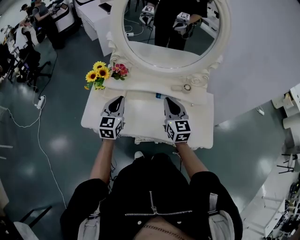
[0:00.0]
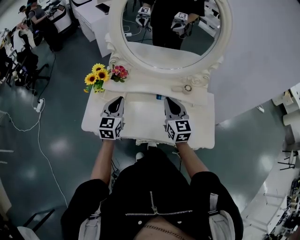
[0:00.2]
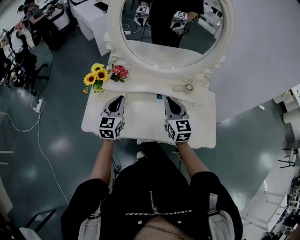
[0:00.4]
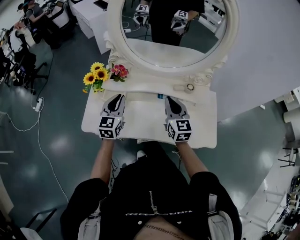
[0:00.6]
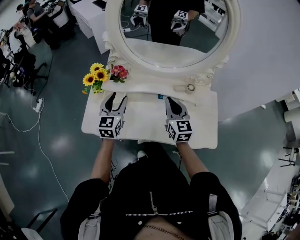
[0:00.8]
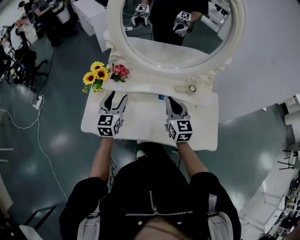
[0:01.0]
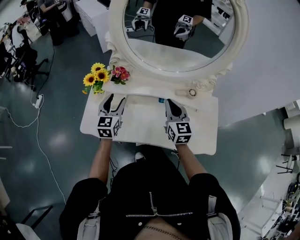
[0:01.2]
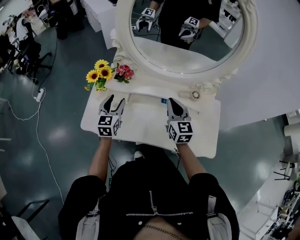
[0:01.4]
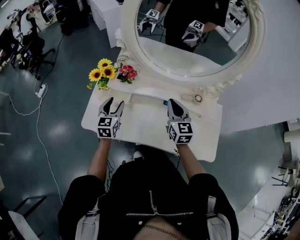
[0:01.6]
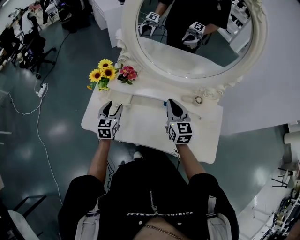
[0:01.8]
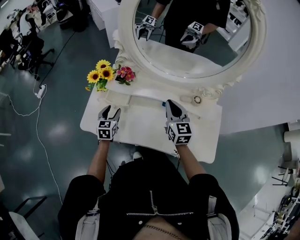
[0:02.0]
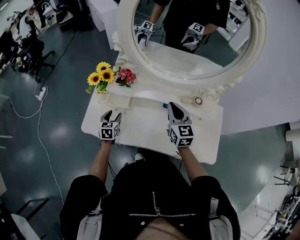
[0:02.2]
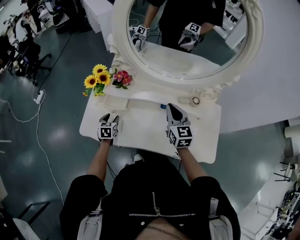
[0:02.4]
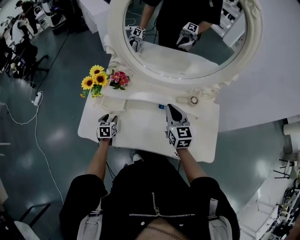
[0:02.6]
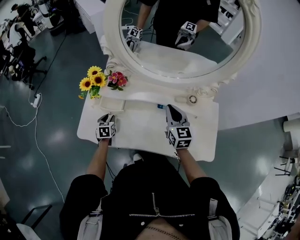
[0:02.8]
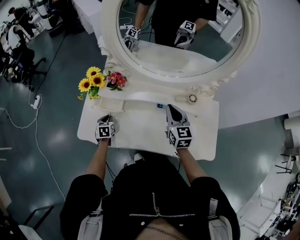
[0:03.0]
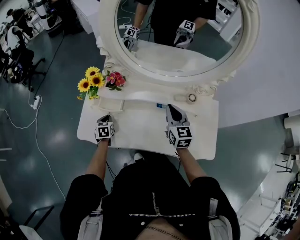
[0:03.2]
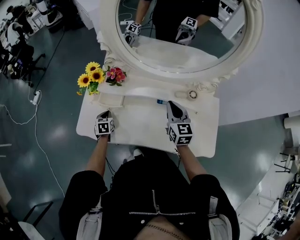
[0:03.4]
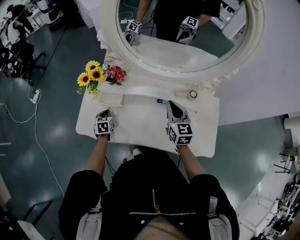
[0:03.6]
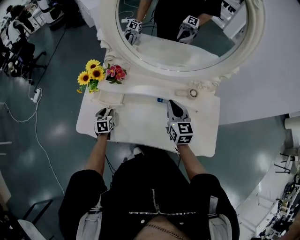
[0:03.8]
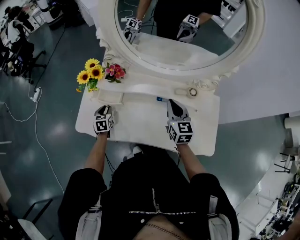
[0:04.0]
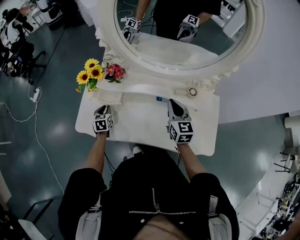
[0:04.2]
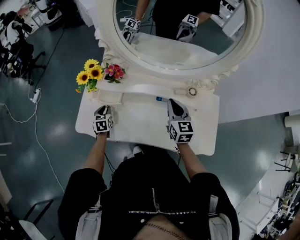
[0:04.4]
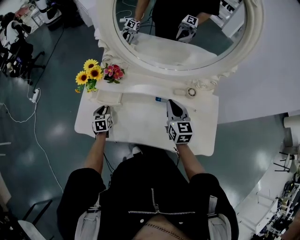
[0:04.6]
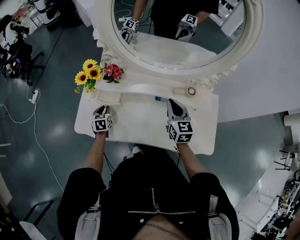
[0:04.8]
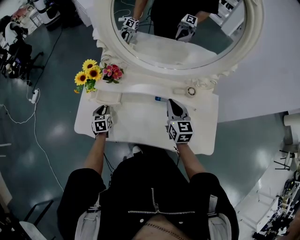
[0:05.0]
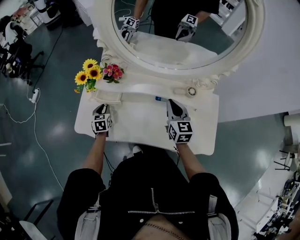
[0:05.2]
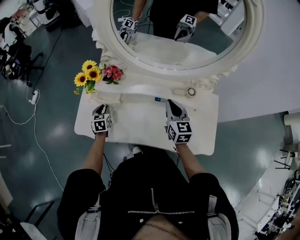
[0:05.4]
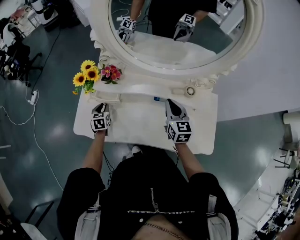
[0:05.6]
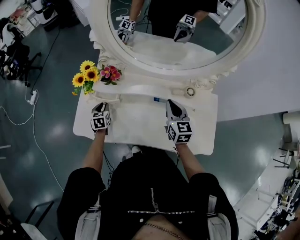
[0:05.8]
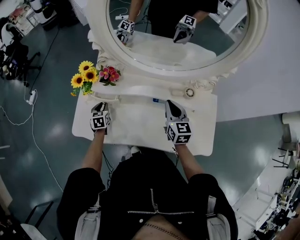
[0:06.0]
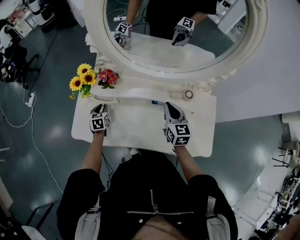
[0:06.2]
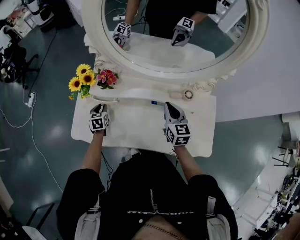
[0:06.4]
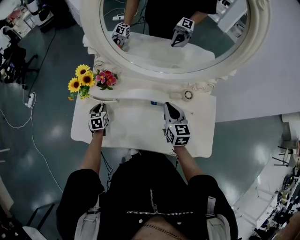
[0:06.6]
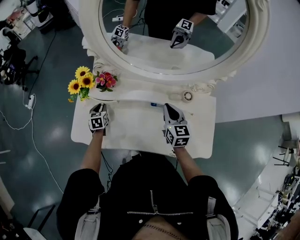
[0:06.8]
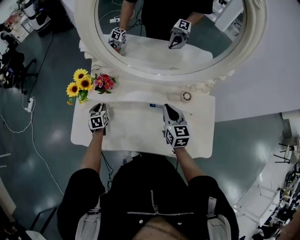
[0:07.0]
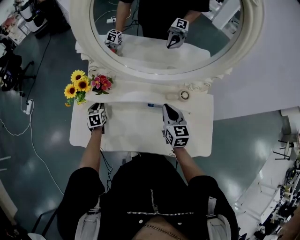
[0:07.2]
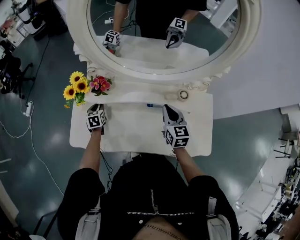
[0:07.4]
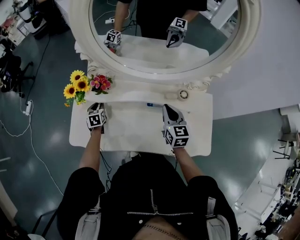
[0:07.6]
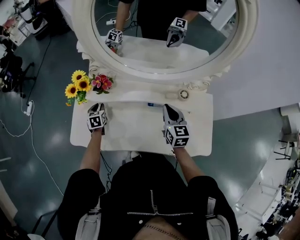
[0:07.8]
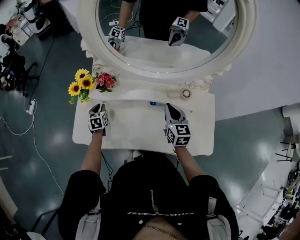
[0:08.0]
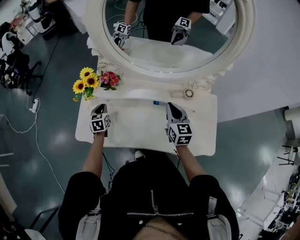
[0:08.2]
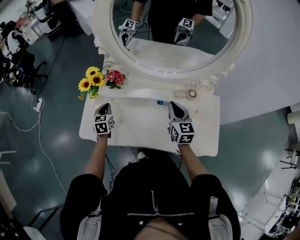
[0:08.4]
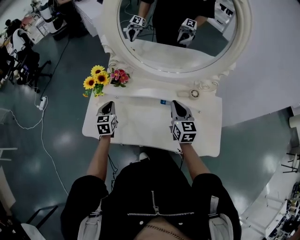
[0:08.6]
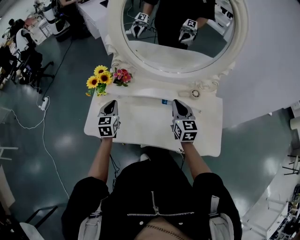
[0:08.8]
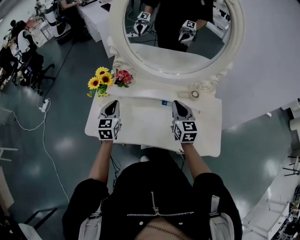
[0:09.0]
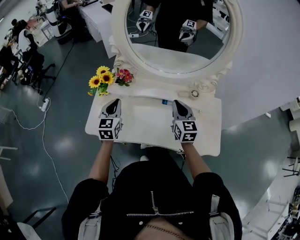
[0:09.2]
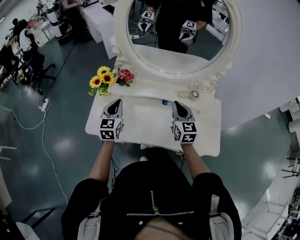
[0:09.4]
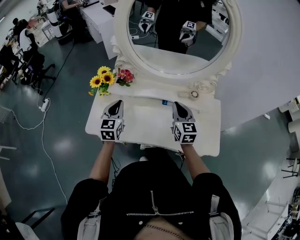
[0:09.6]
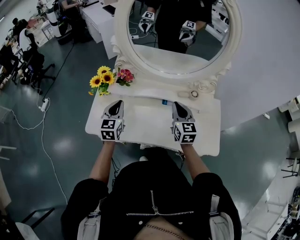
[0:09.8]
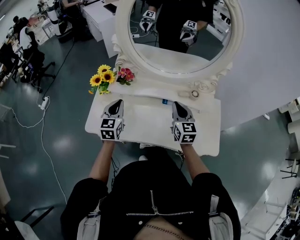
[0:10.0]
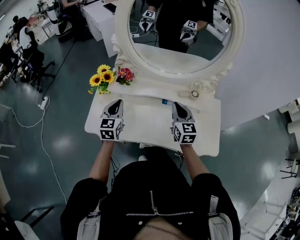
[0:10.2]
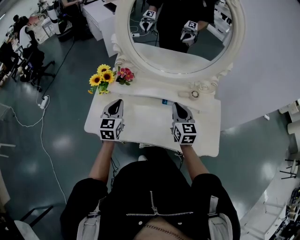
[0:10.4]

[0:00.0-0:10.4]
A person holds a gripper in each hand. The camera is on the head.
0:00.0 to 0:01.4: The right gripper moves forward, roughly 5 cm. Meanwhile the left gripper shifts about 10 cm forward, downward and to the left, and opens its fingers.
0:01.4 to 0:03.0: The left gripper is displaced downward by roughly 20 cm, tilts its fingers roughly 30 degrees downward, and closes its fingers.
0:03.0 to 0:06.0: The grippers move only a little.
0:06.0 to 0:07.4: The left gripper is displaced forward by some 5 cm.
0:07.4 to 0:09.0: The left gripper goes roughly 25 cm upward and backward, turns by approximately 30 degrees, and closes up, while the right gripper shifts roughly 5 cm upward.
0:09.0 to 0:10.4: The grippers make only small movements.

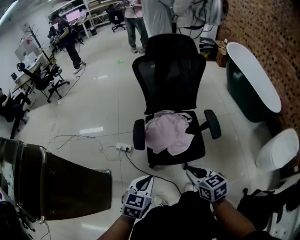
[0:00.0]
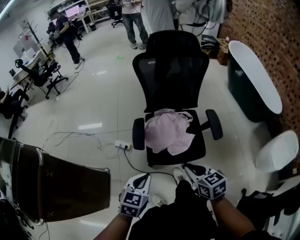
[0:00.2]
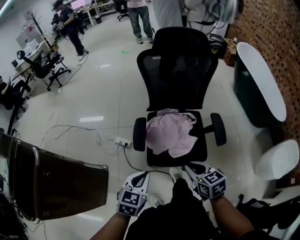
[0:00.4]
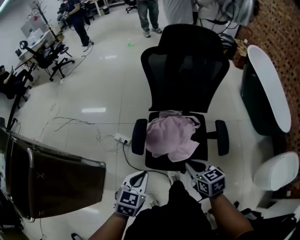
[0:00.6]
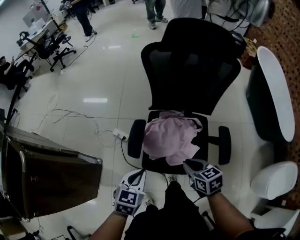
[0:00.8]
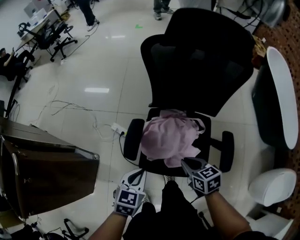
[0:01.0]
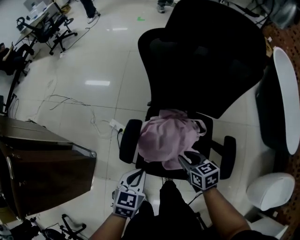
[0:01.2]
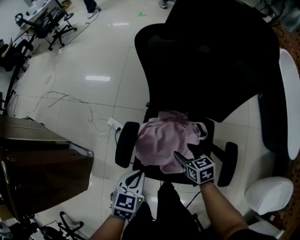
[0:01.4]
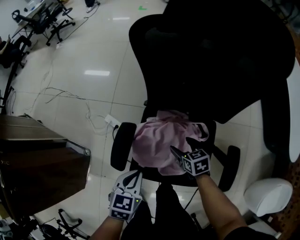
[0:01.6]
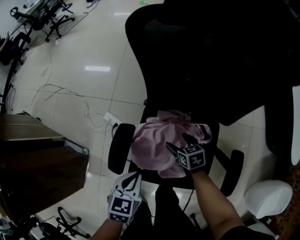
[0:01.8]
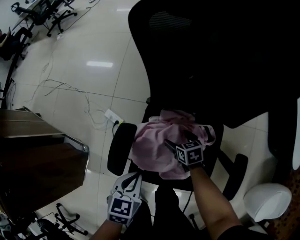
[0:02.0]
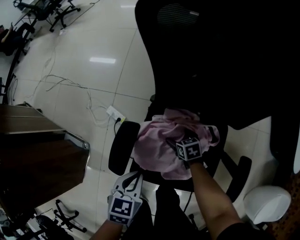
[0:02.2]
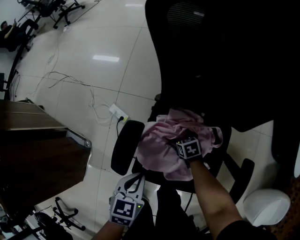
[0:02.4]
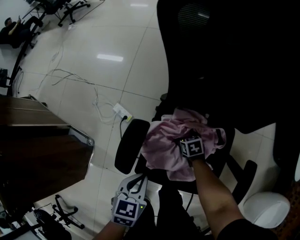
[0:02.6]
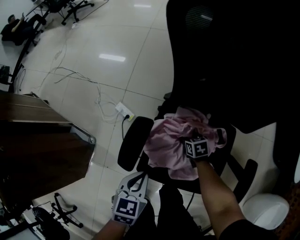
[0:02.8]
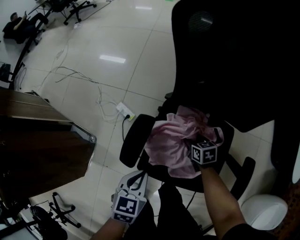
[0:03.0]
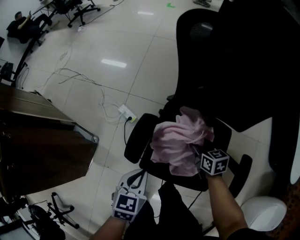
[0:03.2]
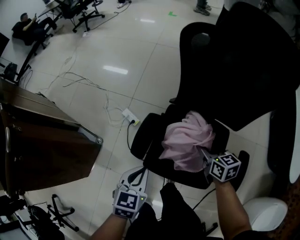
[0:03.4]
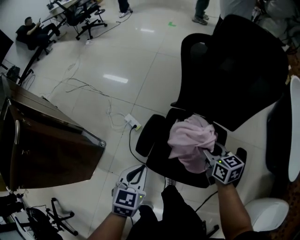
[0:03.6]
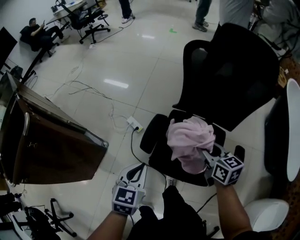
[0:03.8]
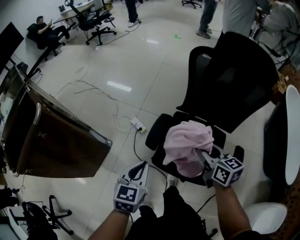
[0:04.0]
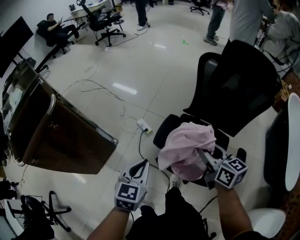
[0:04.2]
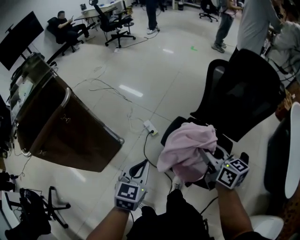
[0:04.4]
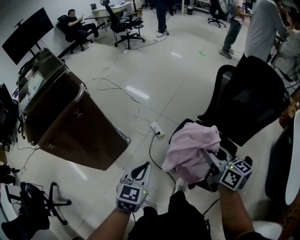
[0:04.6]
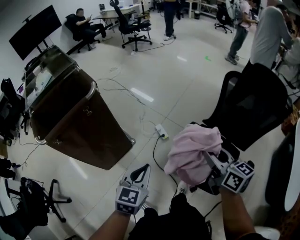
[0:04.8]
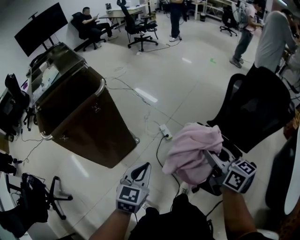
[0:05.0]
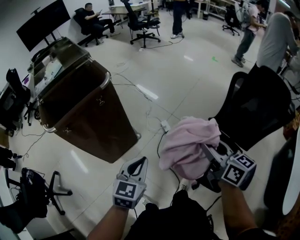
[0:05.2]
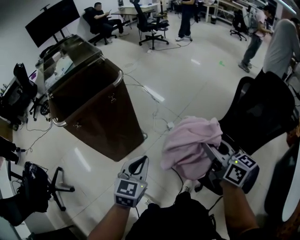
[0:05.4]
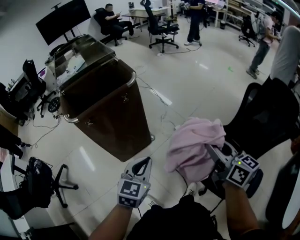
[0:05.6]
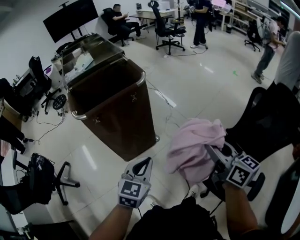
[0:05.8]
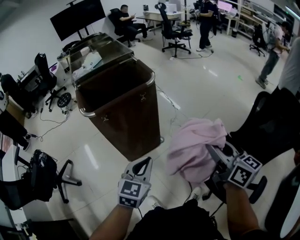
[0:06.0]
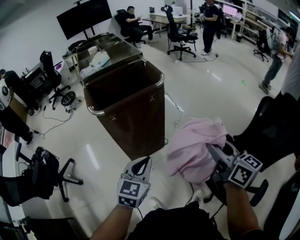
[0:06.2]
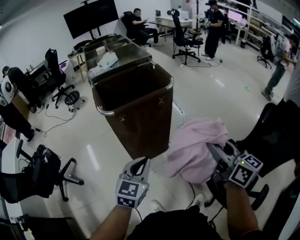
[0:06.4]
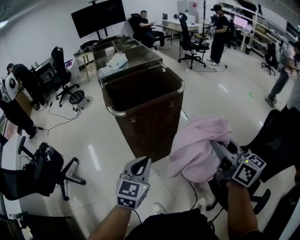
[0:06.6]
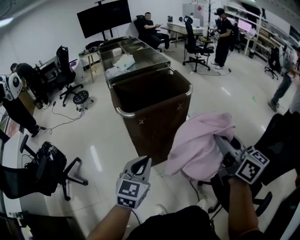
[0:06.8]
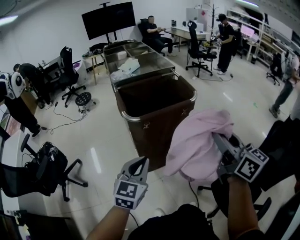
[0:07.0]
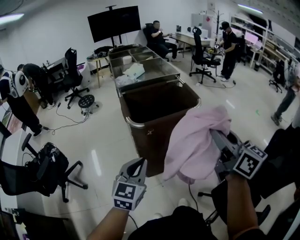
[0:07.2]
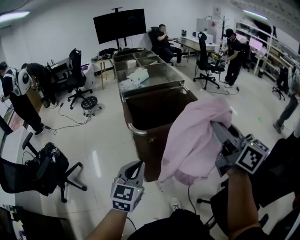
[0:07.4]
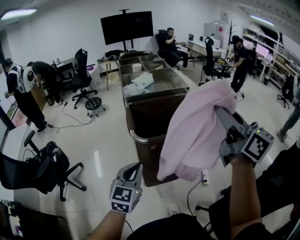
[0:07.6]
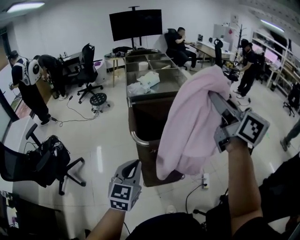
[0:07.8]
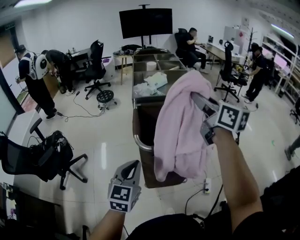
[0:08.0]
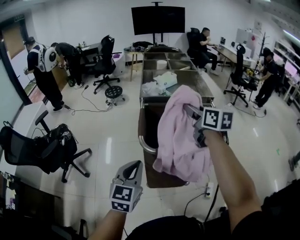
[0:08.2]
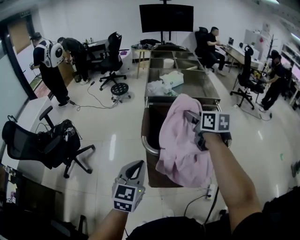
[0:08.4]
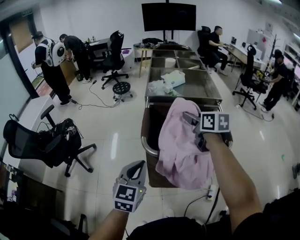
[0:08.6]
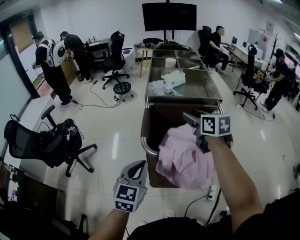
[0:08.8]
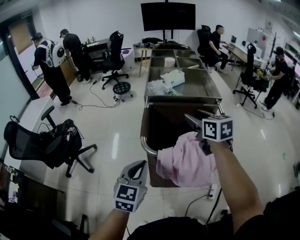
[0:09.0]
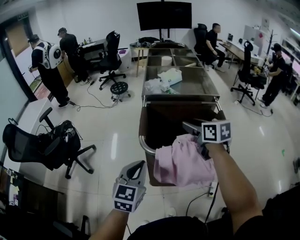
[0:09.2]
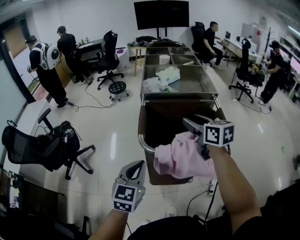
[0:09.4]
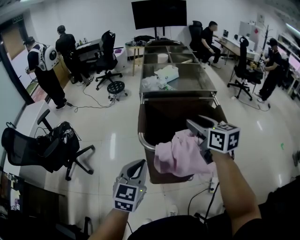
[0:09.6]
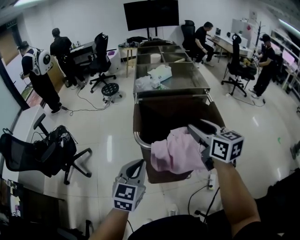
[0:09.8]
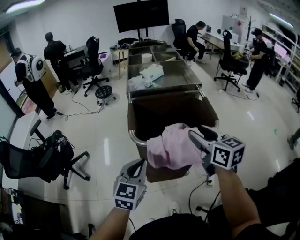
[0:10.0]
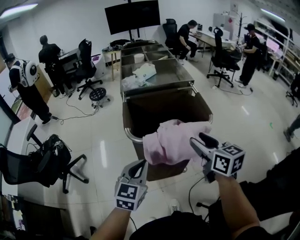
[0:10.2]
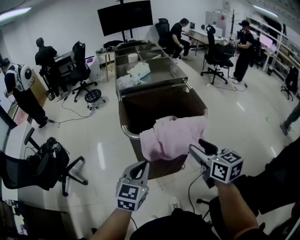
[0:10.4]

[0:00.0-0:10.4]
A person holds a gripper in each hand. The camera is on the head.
0:00.0 to 0:01.4: The grippers both shift forward and downward by roughly 35 cm. The right gripper opens up. Meanwhile the left gripper changes its angle by roughly 20 degrees.
0:01.4 to 0:03.0: The left gripper heads downward, covering roughly 5 cm. The right gripper moves downward and forward, some 20 cm, and opens and closes again.
0:03.0 to 0:04.4: The right gripper moves upward, roughly 40 cm, and tips its fingers upward by some 40 degrees; the left gripper travels upward, to the left and backward by approximately 25 cm, and changes its angle by about 20 degrees.
0:04.4 to 0:06.0: The left gripper moves to the left, roughly 25 cm, and turns by some 20 degrees, while the right gripper travels to the left and upward by approximately 30 cm, and turns by about 30 degrees.
0:06.0 to 0:07.4: The left gripper is displaced to the left by approximately 20 cm; the right gripper heads to the left, upward and forward, covering approximately 30 cm.
0:07.4 to 0:09.0: The left gripper goes some 10 cm forward, and swivels some 20 degrees; the right gripper shifts some 35 cm forward and downward, and turns by approximately 40 degrees.
0:09.0 to 0:10.4: The right gripper shifts approximately 25 cm backward. Meanwhile the left gripper heads backward, covering some 5 cm.

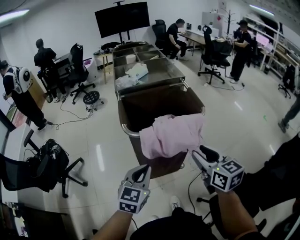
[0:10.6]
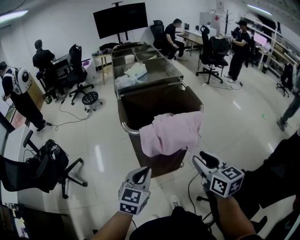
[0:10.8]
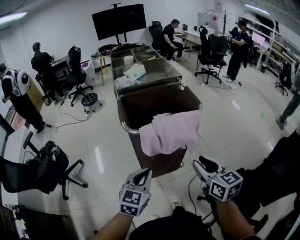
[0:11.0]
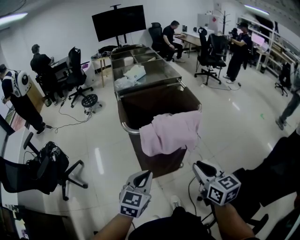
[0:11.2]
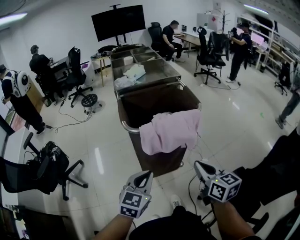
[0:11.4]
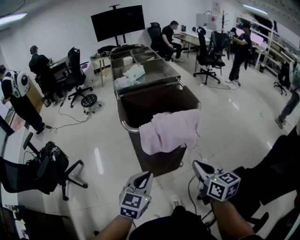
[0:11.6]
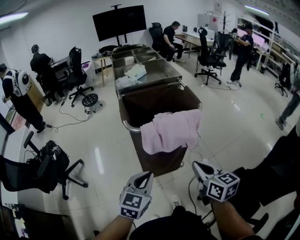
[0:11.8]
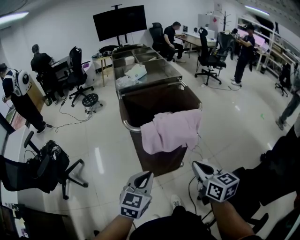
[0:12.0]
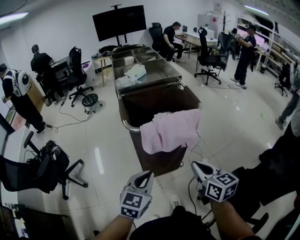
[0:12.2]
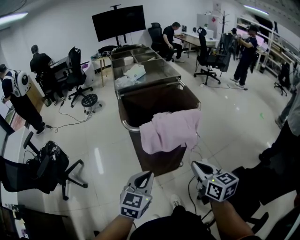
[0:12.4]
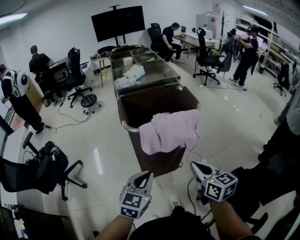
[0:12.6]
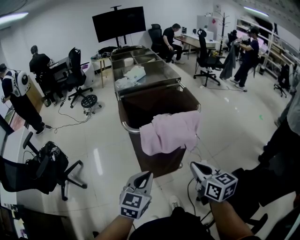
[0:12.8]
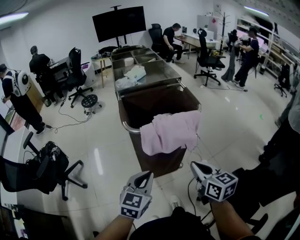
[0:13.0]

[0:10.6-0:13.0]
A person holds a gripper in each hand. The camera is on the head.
0:10.6 to 0:11.8: Both grippers move backward, roughly 5 cm. The right gripper closes up.
0:11.8 to 0:13.0: Both grippers stay about where they are.
